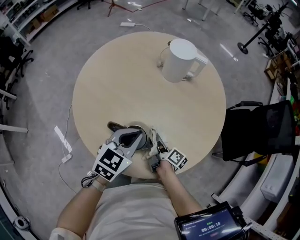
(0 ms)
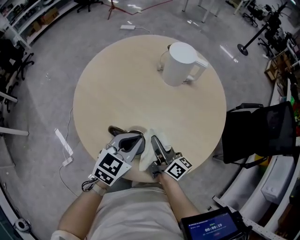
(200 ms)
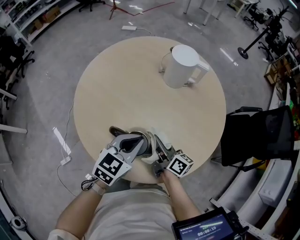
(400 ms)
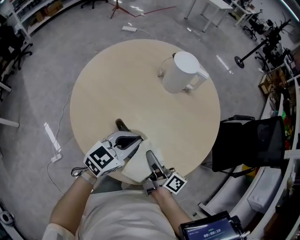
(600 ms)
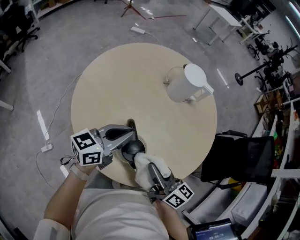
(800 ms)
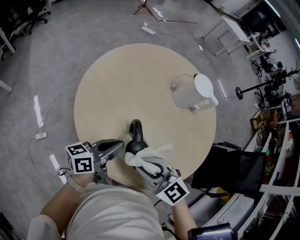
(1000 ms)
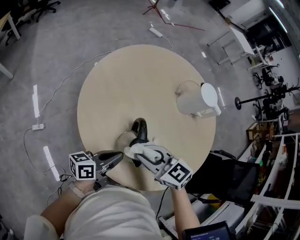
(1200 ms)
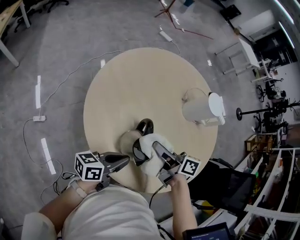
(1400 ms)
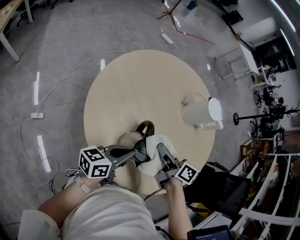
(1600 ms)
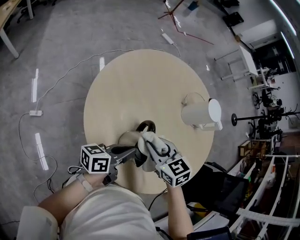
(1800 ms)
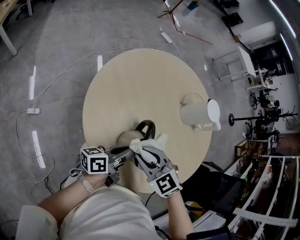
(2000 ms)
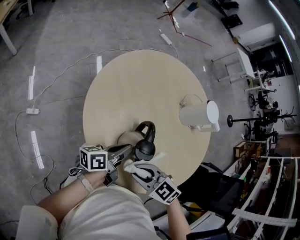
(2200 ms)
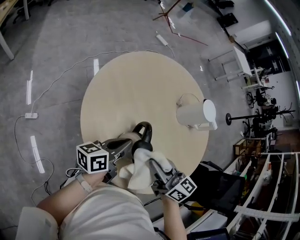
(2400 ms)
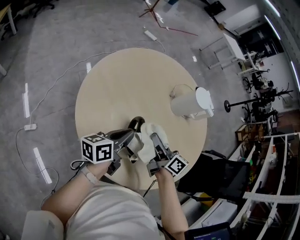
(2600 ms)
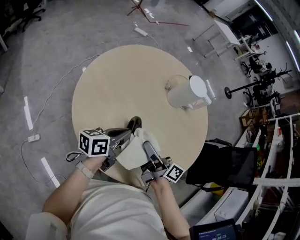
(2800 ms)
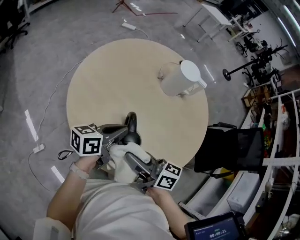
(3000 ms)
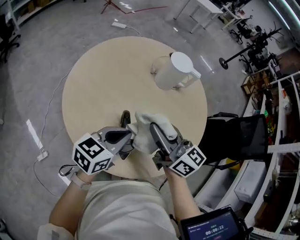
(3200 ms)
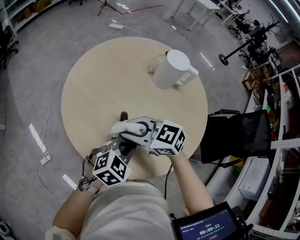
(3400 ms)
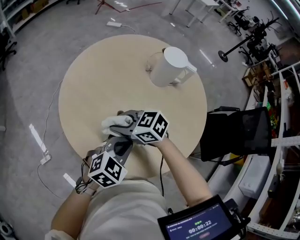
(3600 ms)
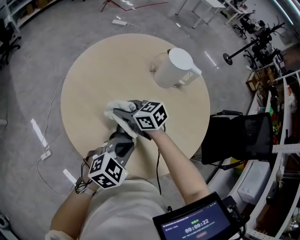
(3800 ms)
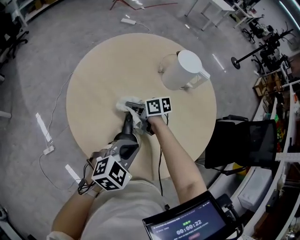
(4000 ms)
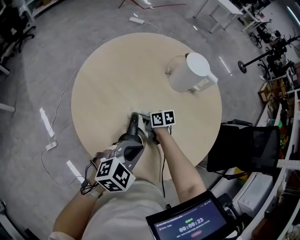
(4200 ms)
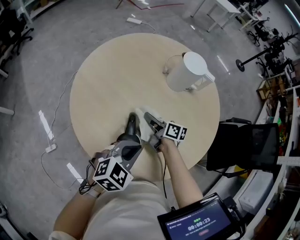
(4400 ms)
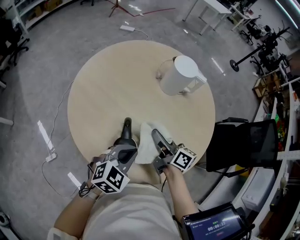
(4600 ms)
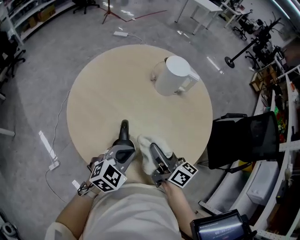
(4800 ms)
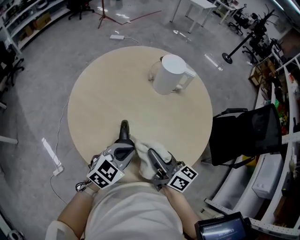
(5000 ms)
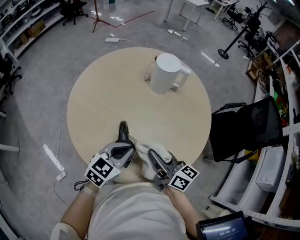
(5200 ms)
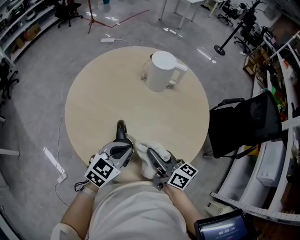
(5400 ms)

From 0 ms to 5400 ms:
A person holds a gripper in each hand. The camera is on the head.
From 0 ms to 1400 ms: The right gripper heads upward, covering some 15 cm, and turns by approximately 50 degrees; the left gripper changes place by about 15 cm, and rotates around the line of its fingers by approximately 50 degrees, counterclockwise from behind.
From 1400 ms to 2800 ms: The left gripper ends up about 10 cm from where it was, while the right gripper travels upward and back again, roughly 5 cm each way, and changes its angle by roughly 30 degrees.
From 2800 ms to 4000 ms: The right gripper changes place by about 20 cm, and tips its fingers downward by approximately 30 degrees; the left gripper changes place by some 10 cm, and rolls clockwise, seen from behind, by roughly 60 degrees.
From 4000 ms to 5400 ms: The right gripper travels backward, upward and to the right by approximately 30 cm, and rotates about 40 degrees.

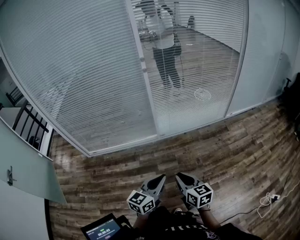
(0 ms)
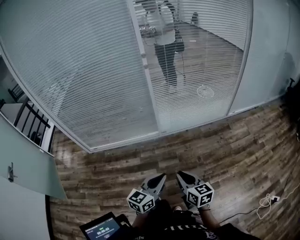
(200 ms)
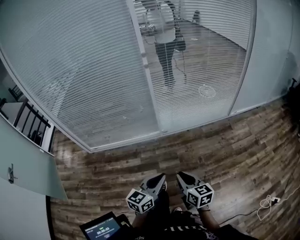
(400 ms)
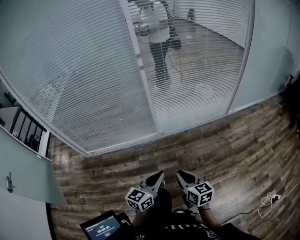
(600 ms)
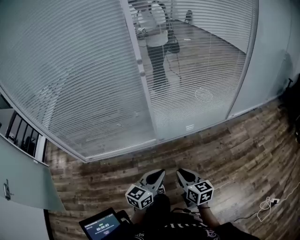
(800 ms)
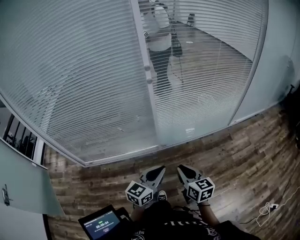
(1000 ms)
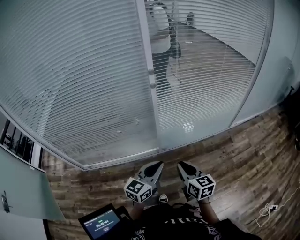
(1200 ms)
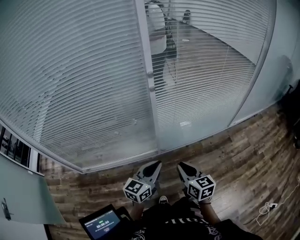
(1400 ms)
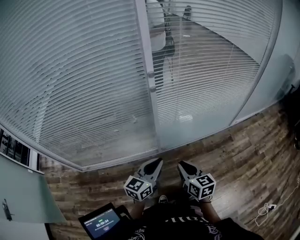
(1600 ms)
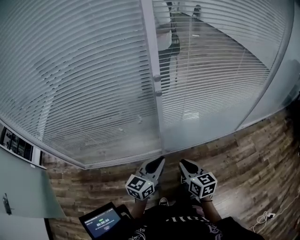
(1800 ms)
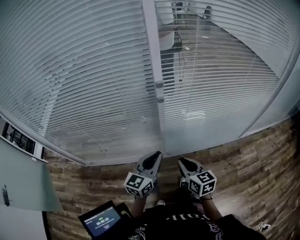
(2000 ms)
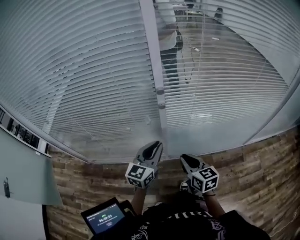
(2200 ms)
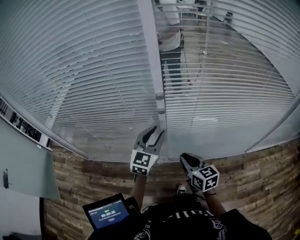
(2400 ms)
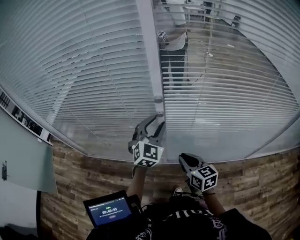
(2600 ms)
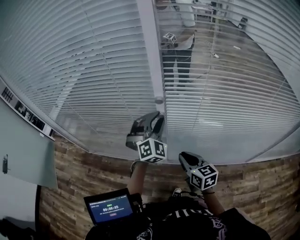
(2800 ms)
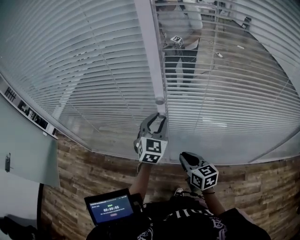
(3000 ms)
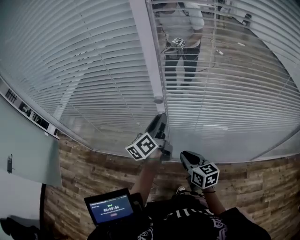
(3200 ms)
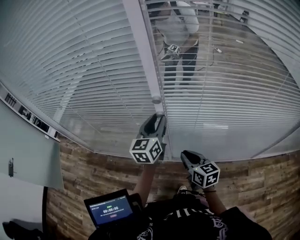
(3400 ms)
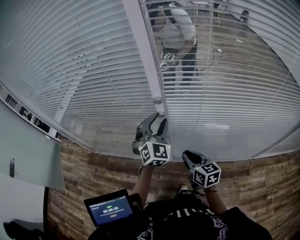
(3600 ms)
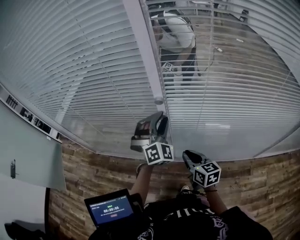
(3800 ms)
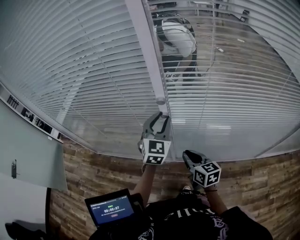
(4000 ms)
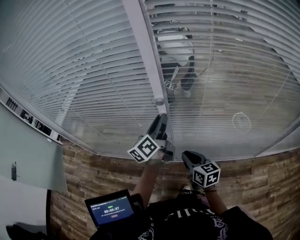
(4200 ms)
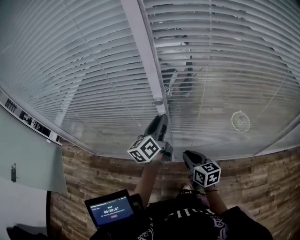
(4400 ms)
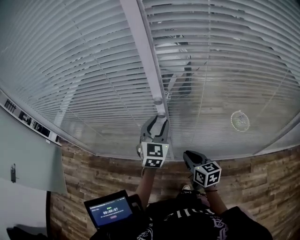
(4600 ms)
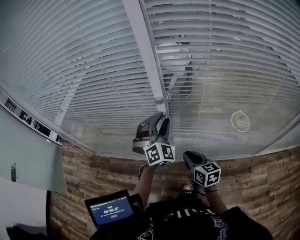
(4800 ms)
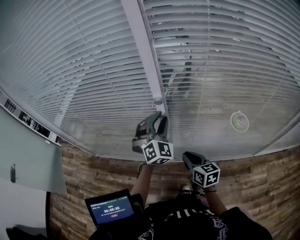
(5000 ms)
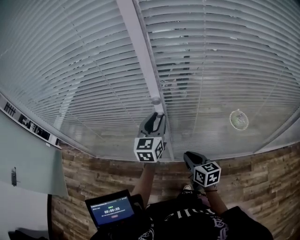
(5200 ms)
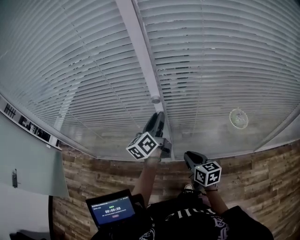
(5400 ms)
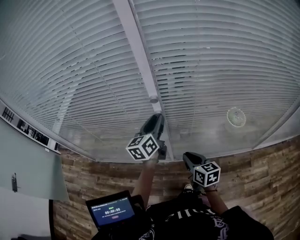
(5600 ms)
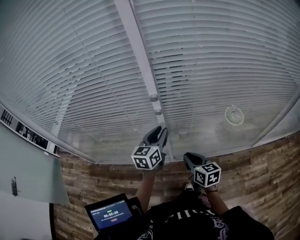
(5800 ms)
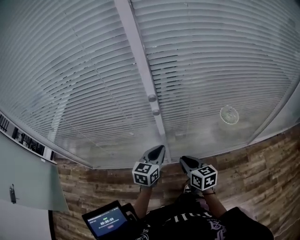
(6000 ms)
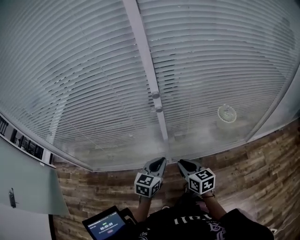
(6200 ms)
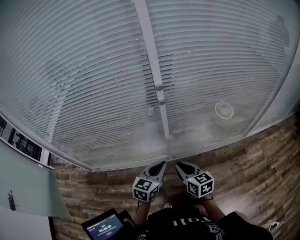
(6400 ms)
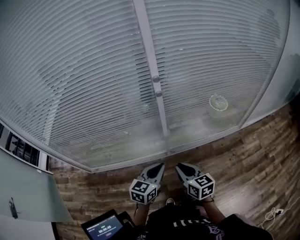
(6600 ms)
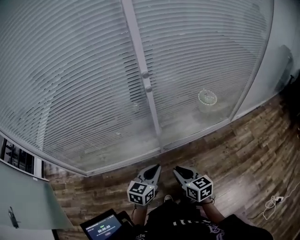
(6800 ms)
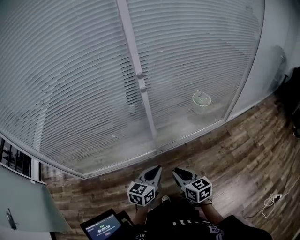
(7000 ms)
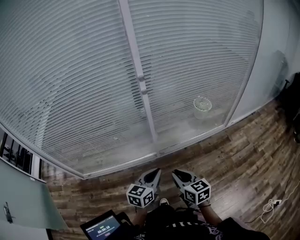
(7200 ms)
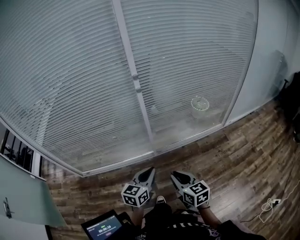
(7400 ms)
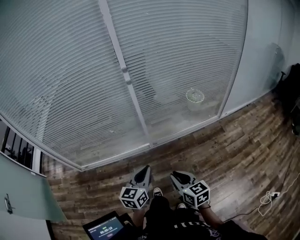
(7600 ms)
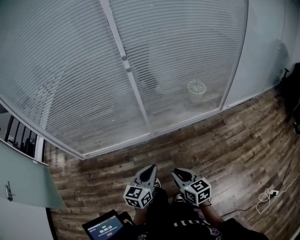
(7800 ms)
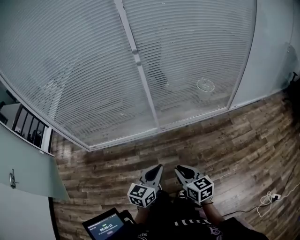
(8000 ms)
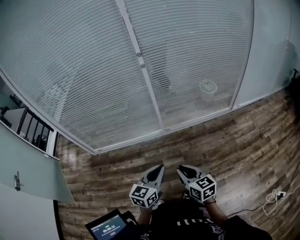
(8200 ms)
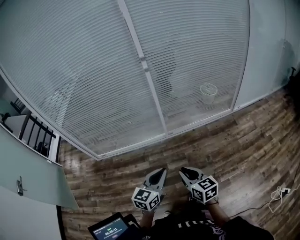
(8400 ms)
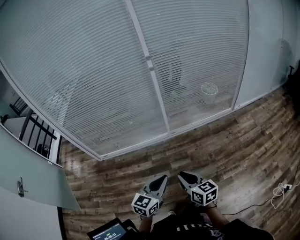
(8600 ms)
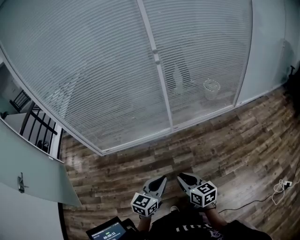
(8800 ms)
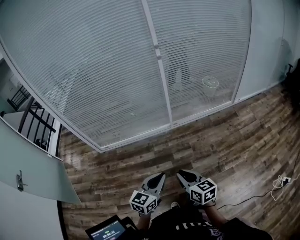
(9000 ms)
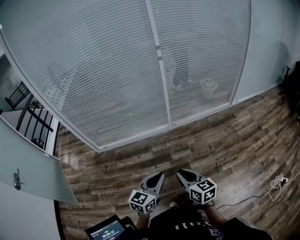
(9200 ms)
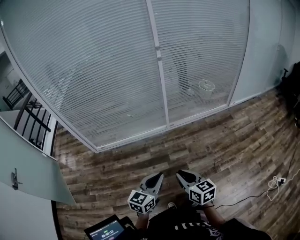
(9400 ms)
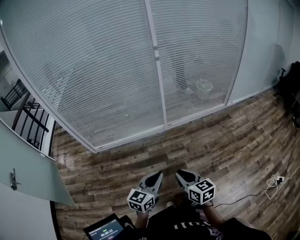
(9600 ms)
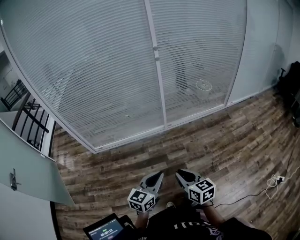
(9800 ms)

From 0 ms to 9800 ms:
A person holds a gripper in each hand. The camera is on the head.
From 0 ms to 1400 ms: Both grippers travel together forward, roughly 35 cm.
From 1400 ms to 2800 ms: The left gripper changes place by some 40 cm, changes its angle by approximately 80 degrees, and opens its fingers, while the right gripper ends up roughly 30 cm from where it was, and rotates roughly 30 degrees.
From 2800 ms to 4200 ms: The left gripper rotates around the line of its fingers by about 100 degrees, counterclockwise from behind.
From 4200 ms to 5600 ms: The left gripper turns by approximately 20 degrees.
From 5600 ms to 7000 ms: The right gripper goes some 30 cm backward and to the left. The left gripper heads backward, covering some 40 cm, rotates approximately 40 degrees, and closes its fingers.
From 7000 ms to 8400 ms: Both grippers travel together backward, roughly 30 cm.
From 8400 ms to 9800 ms: Both grippers travel together to the left and backward, some 20 cm.

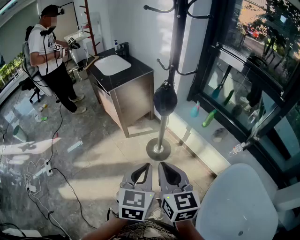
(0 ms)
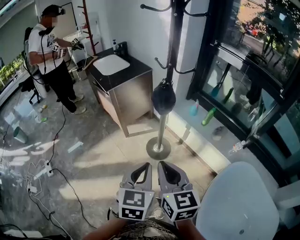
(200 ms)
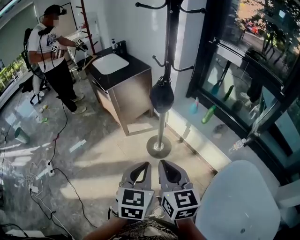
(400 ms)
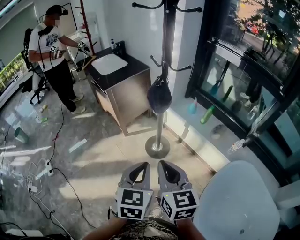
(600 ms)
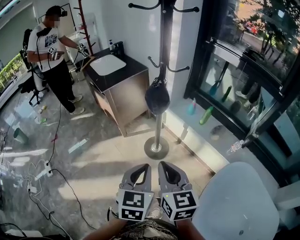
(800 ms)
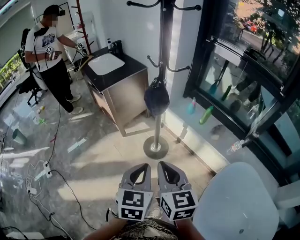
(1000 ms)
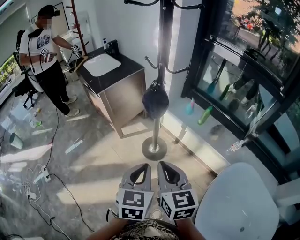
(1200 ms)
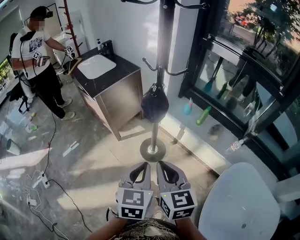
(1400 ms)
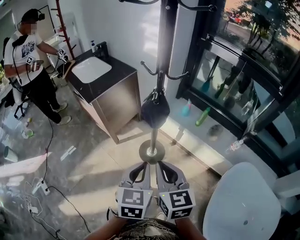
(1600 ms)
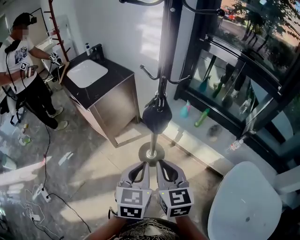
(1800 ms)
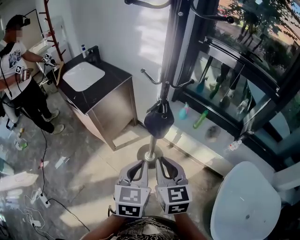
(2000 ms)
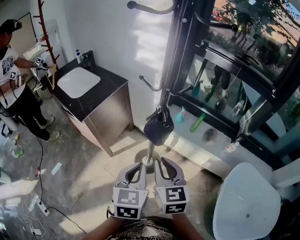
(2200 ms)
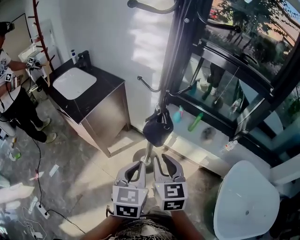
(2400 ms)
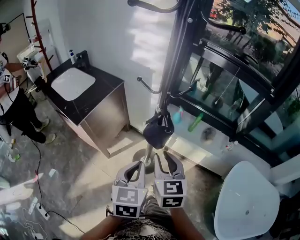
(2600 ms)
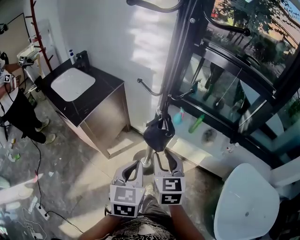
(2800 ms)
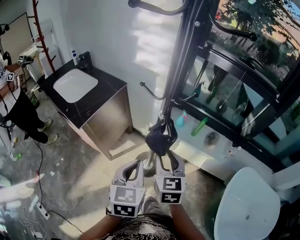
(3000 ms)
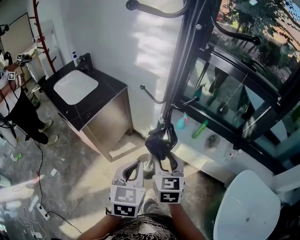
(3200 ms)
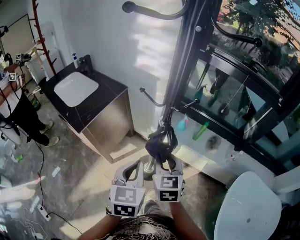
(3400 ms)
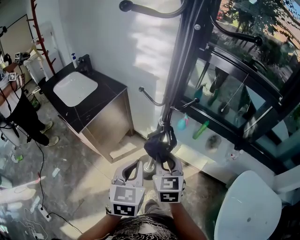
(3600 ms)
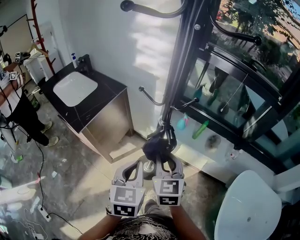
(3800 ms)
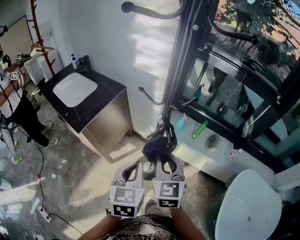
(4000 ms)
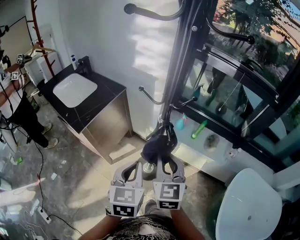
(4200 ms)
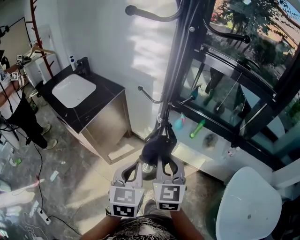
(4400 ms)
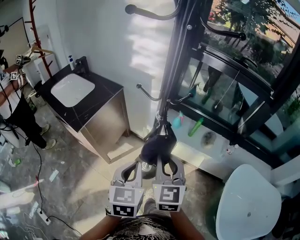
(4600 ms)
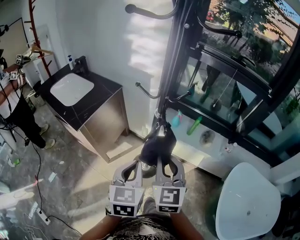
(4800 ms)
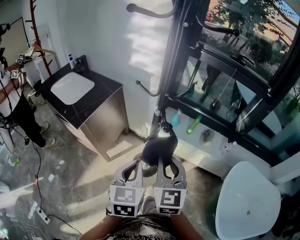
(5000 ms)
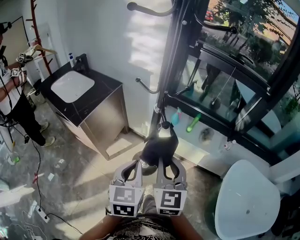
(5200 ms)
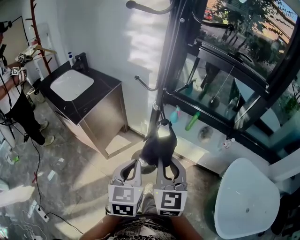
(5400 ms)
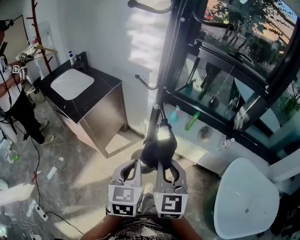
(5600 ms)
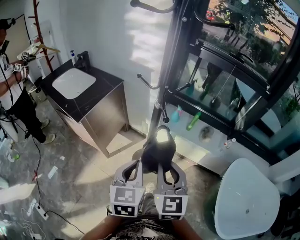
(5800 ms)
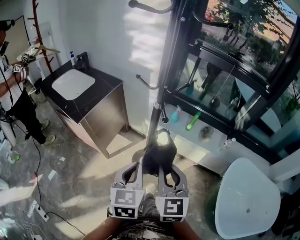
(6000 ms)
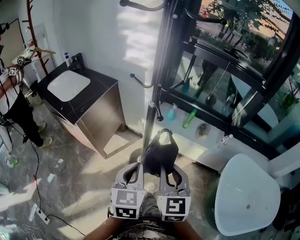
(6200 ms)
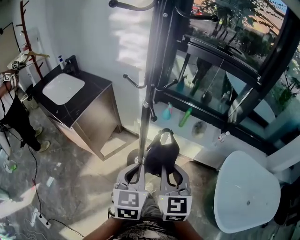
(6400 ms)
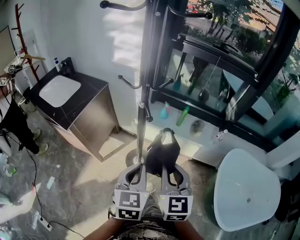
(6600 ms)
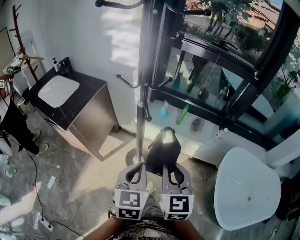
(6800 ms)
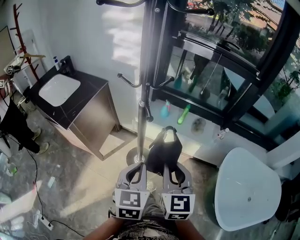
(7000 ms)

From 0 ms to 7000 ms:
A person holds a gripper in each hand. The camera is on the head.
From 0 ms to 1400 ms: Both grippers move forward, approximately 10 cm.
From 1400 ms to 2800 ms: The right gripper goes about 20 cm forward, turns by some 20 degrees, and opens its fingers. Meanwhile the left gripper goes roughly 20 cm forward and to the left.
From 2800 ms to 4200 ms: The right gripper closes.
From 4200 ms to 5600 ms: The left gripper is displaced backward by about 5 cm. The right gripper moves backward, roughly 10 cm.
From 5600 ms to 7000 ms: The two grippers go about 5 cm to the right.

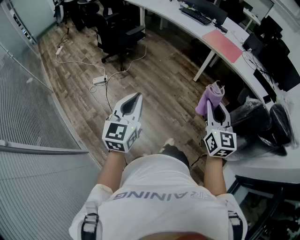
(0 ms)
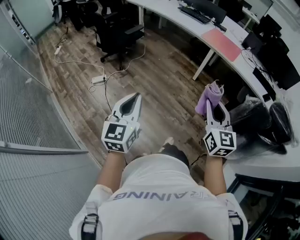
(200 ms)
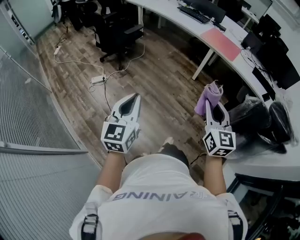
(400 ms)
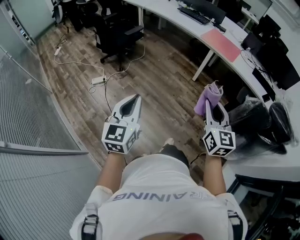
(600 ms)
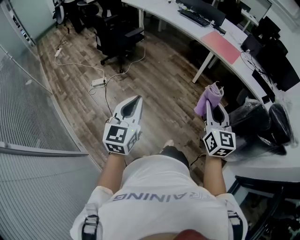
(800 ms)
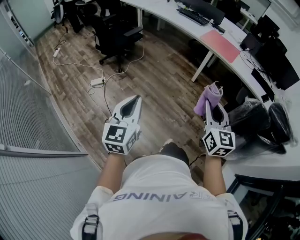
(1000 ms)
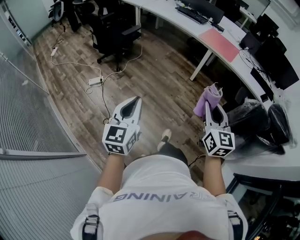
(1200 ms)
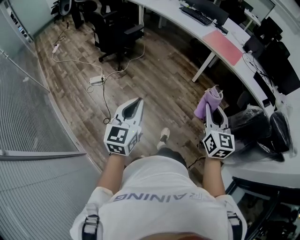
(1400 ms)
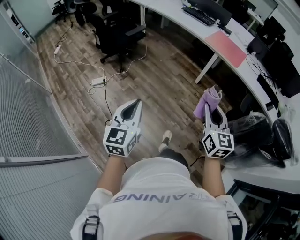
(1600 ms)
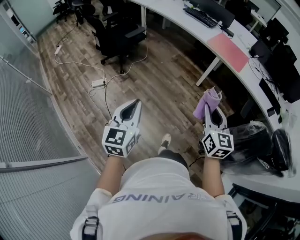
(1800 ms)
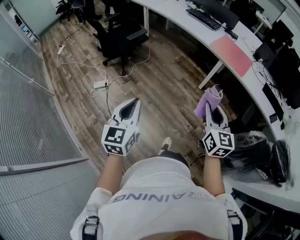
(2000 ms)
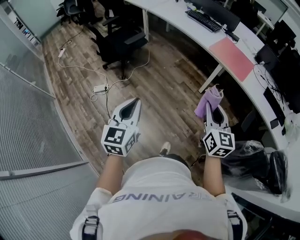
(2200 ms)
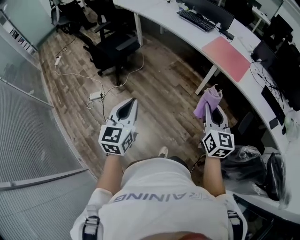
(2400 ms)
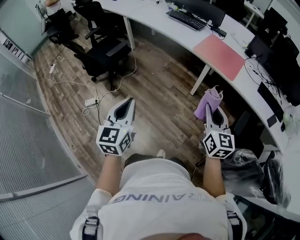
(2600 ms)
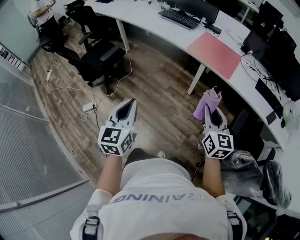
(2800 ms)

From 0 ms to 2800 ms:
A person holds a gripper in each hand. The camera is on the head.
From 0 ms to 1400 ms: The right gripper shifts by approximately 5 cm.
From 1400 ms to 2800 ms: The grippers both shift forward and to the right by about 35 cm.
